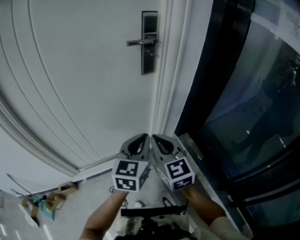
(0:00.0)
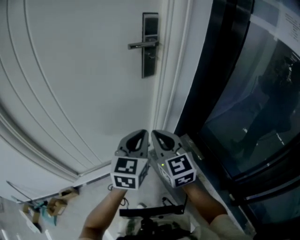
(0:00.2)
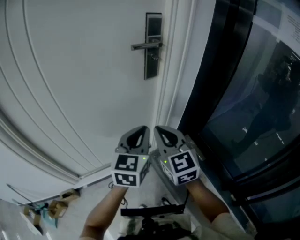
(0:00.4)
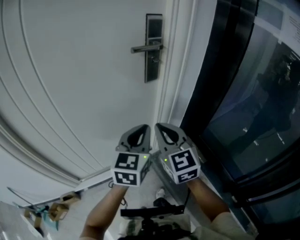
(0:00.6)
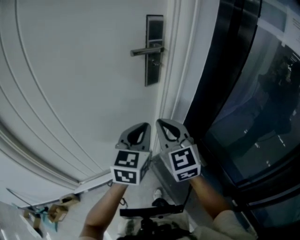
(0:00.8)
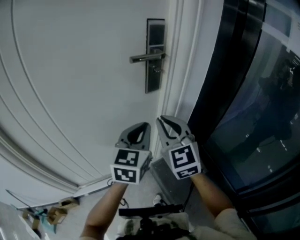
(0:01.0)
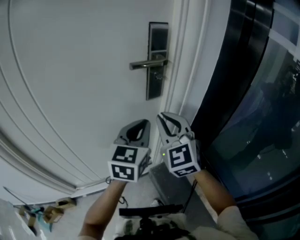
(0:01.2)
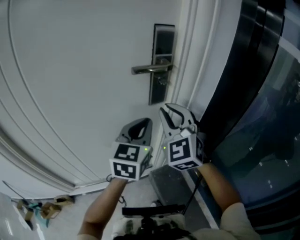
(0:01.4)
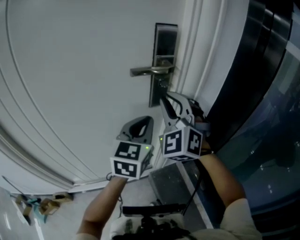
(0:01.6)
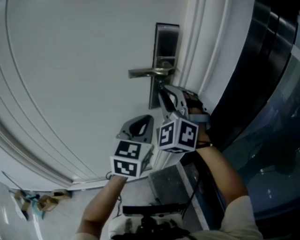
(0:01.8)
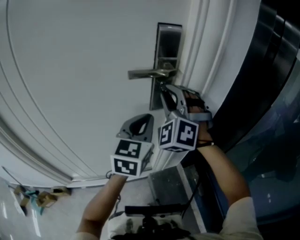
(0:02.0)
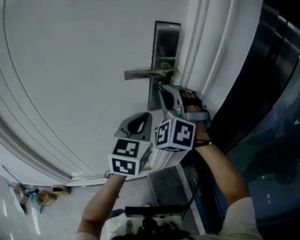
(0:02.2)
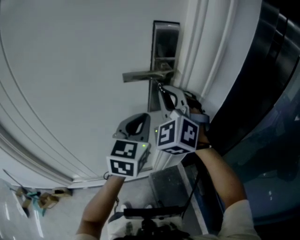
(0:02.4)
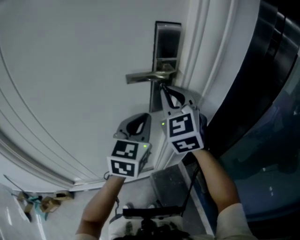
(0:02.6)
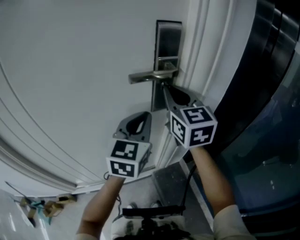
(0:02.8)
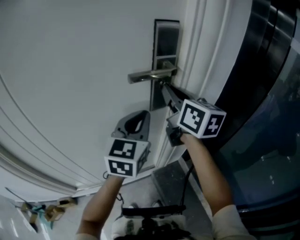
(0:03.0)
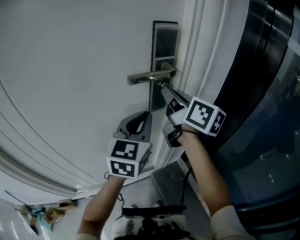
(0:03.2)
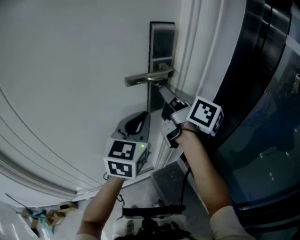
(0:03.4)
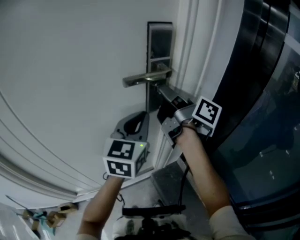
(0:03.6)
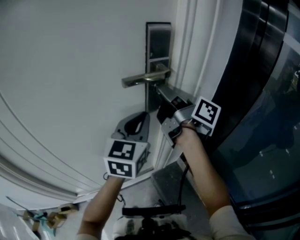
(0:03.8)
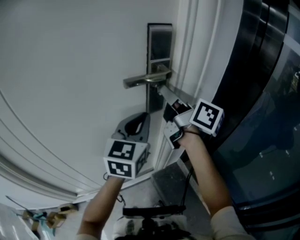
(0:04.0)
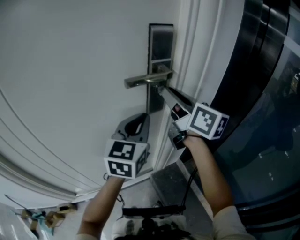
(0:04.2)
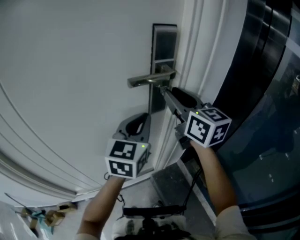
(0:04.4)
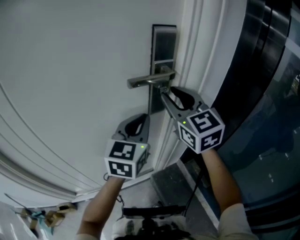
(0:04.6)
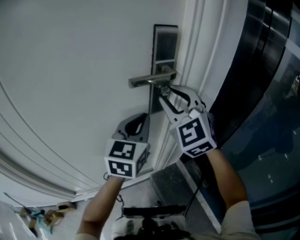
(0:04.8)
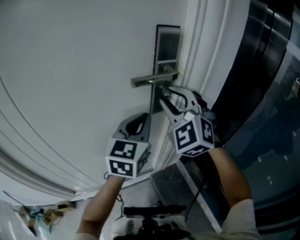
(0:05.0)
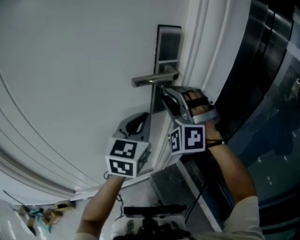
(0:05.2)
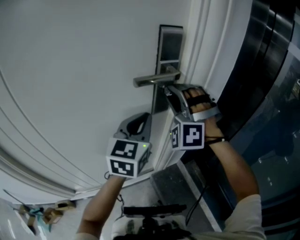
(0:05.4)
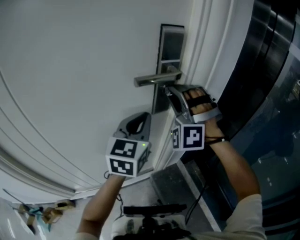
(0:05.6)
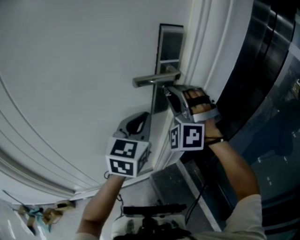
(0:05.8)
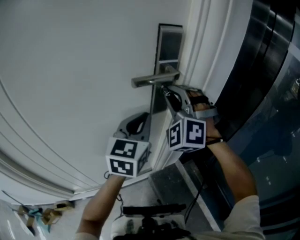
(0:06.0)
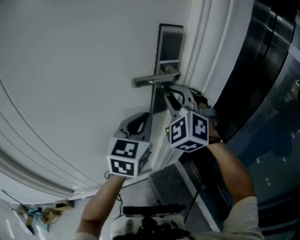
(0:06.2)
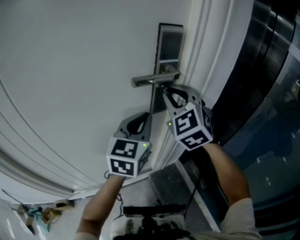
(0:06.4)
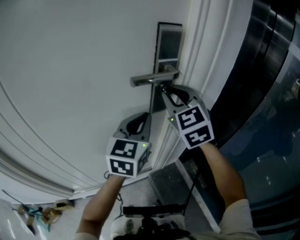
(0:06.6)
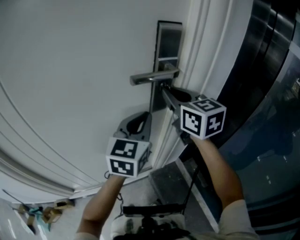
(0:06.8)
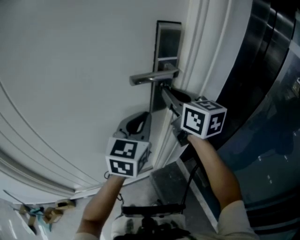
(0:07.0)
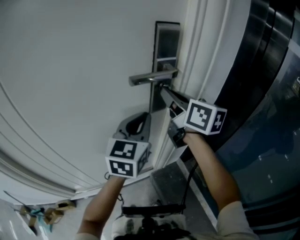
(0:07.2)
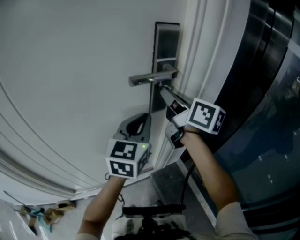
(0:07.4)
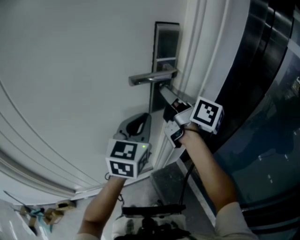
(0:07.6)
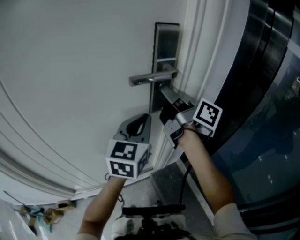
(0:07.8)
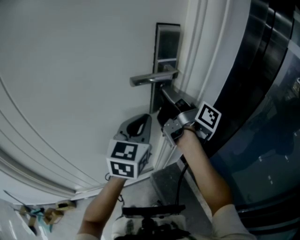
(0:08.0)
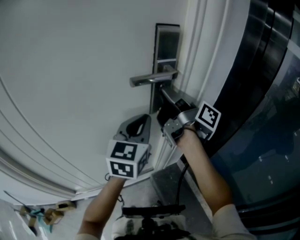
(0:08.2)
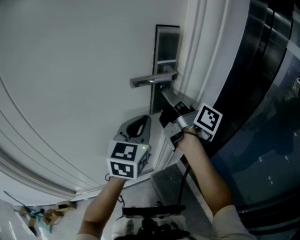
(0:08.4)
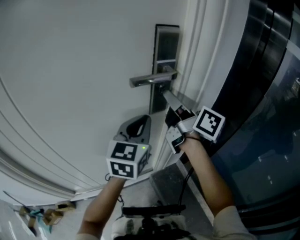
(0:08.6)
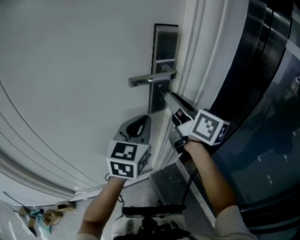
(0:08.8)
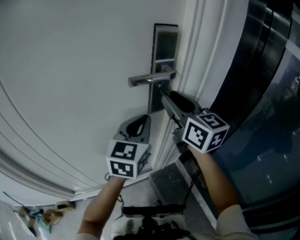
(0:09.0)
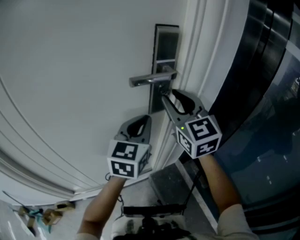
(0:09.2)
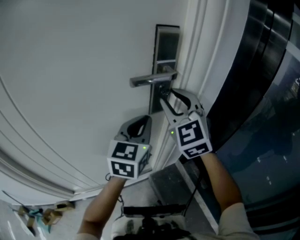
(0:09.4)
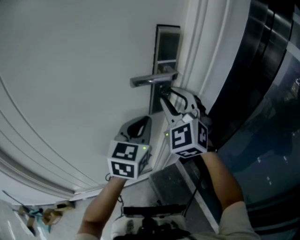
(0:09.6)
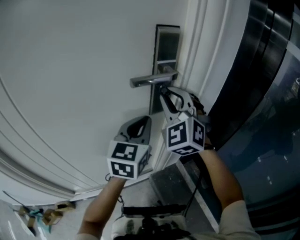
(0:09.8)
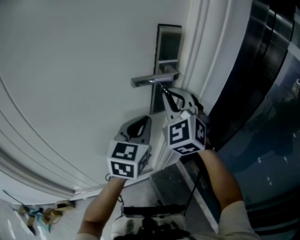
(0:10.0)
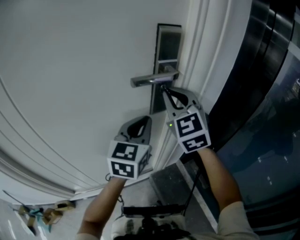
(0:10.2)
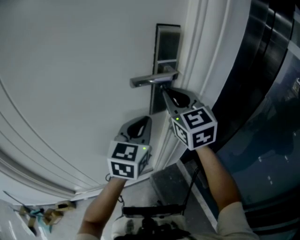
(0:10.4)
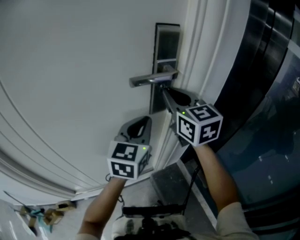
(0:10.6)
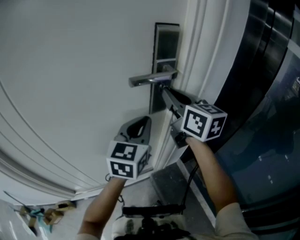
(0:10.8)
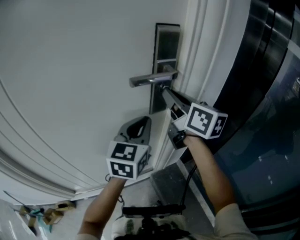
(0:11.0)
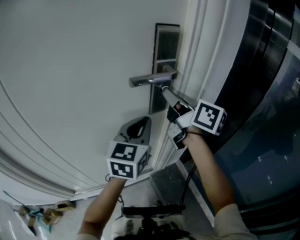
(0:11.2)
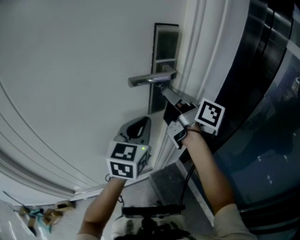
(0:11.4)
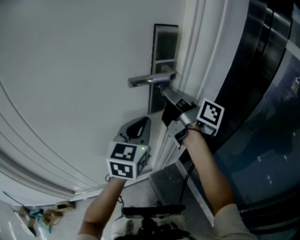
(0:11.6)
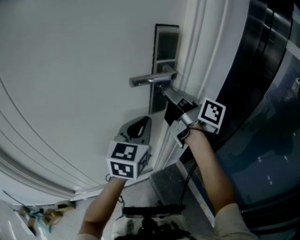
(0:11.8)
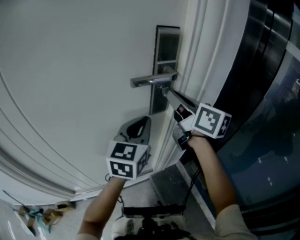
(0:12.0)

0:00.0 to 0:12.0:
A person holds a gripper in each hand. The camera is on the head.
0:00.0 to 0:01.6: The left gripper goes roughly 25 cm forward. The right gripper shifts roughly 30 cm forward and upward, and rolls counterclockwise, seen from behind, by roughly 50 degrees.
0:01.6 to 0:03.0: The right gripper moves forward, roughly 5 cm, and twists about 80 degrees clockwise, seen from behind.
0:03.0 to 0:04.4: The right gripper opens.
0:04.4 to 0:06.0: The right gripper rotates around the line of its fingers by roughly 90 degrees, counterclockwise from behind.
0:06.0 to 0:07.6: The right gripper rotates around the line of its fingers by approximately 130 degrees, clockwise from behind.
0:07.6 to 0:09.0: The right gripper rolls counterclockwise, seen from behind, by approximately 40 degrees.
0:09.0 to 0:10.4: The right gripper swivels some 30 degrees, and closes.
0:10.4 to 0:12.0: The right gripper twists approximately 50 degrees clockwise, seen from behind.

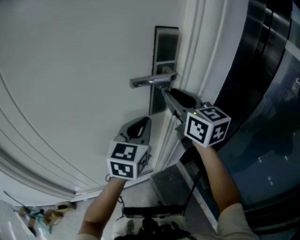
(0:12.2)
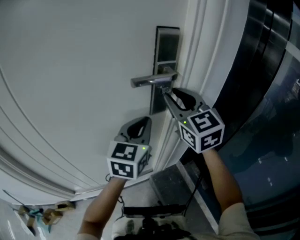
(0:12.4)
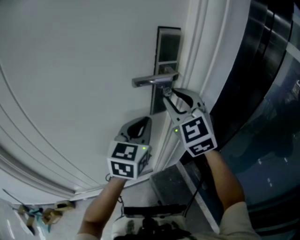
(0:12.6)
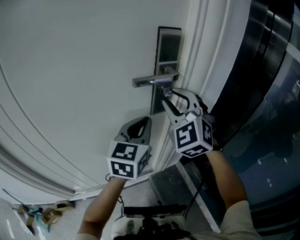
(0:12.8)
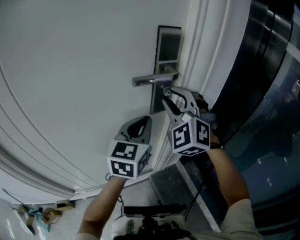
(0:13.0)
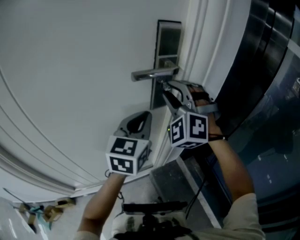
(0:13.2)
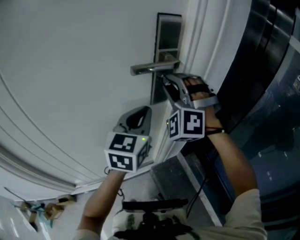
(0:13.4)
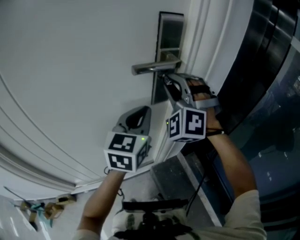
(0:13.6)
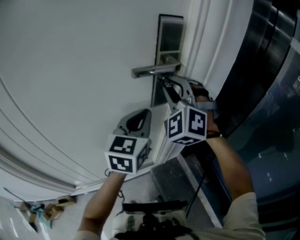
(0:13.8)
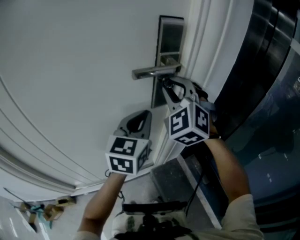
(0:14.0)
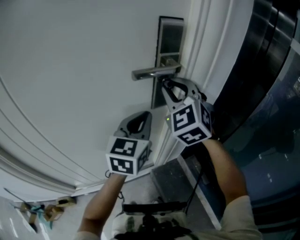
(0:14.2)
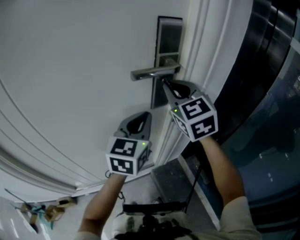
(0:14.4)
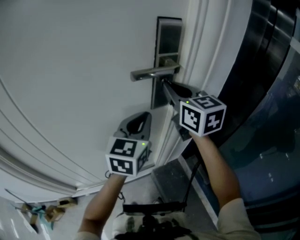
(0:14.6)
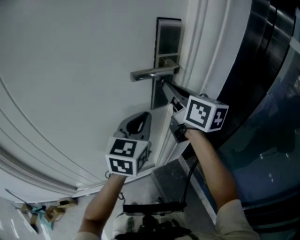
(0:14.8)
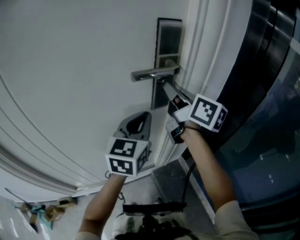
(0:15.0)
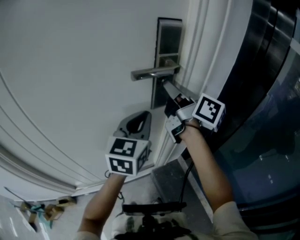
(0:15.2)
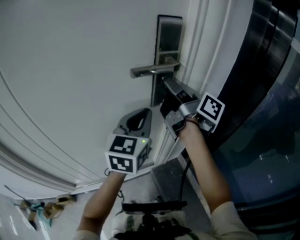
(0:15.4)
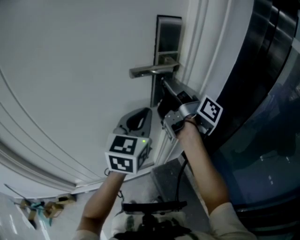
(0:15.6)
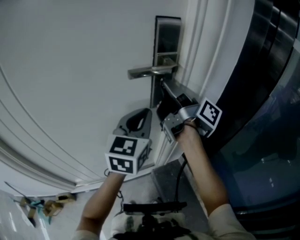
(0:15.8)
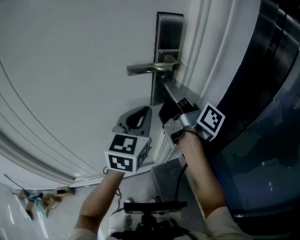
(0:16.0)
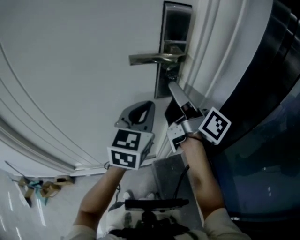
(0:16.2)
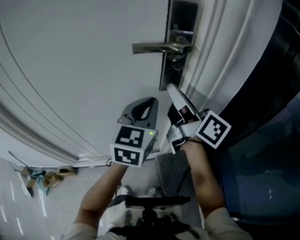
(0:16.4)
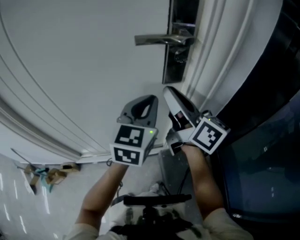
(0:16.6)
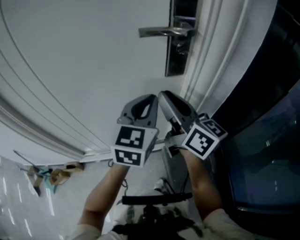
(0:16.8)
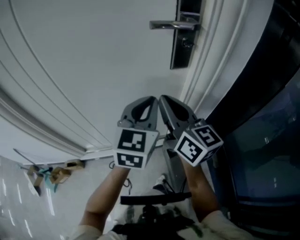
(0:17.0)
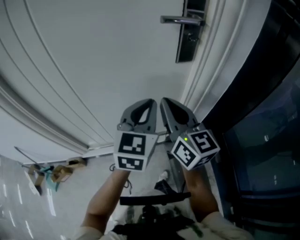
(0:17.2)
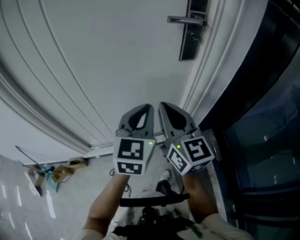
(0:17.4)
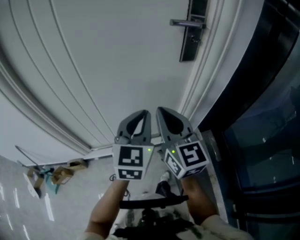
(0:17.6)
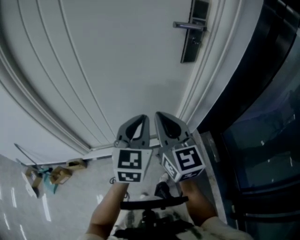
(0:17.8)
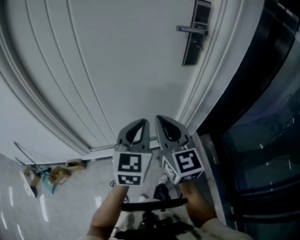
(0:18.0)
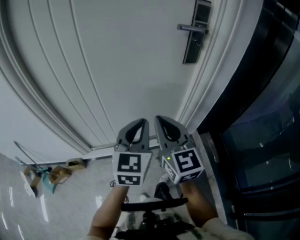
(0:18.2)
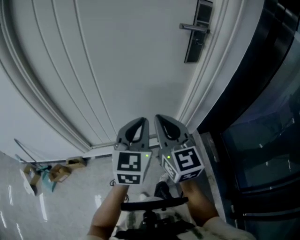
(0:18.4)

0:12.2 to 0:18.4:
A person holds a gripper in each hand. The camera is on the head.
0:12.2 to 0:13.8: The right gripper rolls counterclockwise, seen from behind, by some 70 degrees.
0:13.8 to 0:15.4: The right gripper twists roughly 140 degrees clockwise, seen from behind.
0:15.4 to 0:16.8: The right gripper shifts roughly 15 cm backward, downward and to the left, and changes its angle by some 40 degrees, while the left gripper shifts by roughly 5 cm.
0:16.8 to 0:18.4: The two grippers go some 25 cm backward and to the left. The right gripper changes its angle by roughly 40 degrees, and closes its fingers.

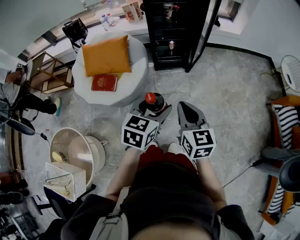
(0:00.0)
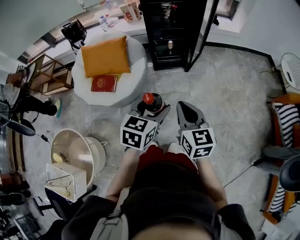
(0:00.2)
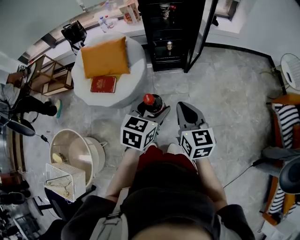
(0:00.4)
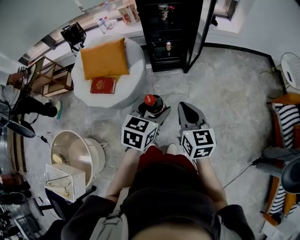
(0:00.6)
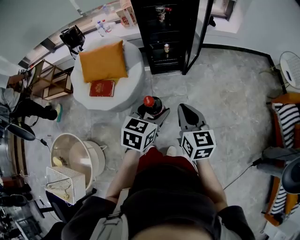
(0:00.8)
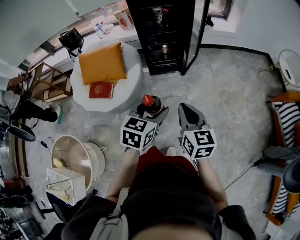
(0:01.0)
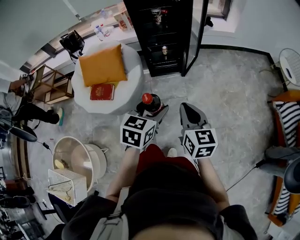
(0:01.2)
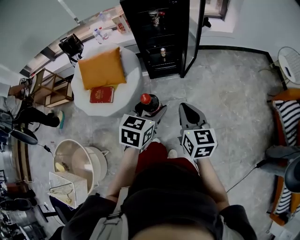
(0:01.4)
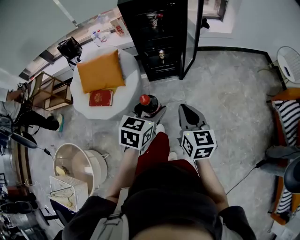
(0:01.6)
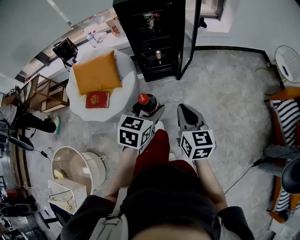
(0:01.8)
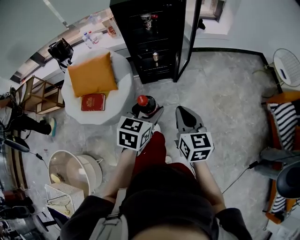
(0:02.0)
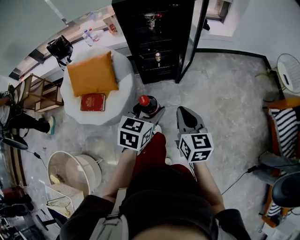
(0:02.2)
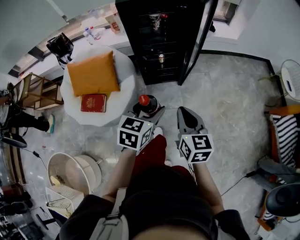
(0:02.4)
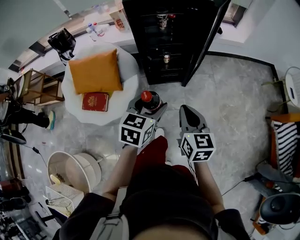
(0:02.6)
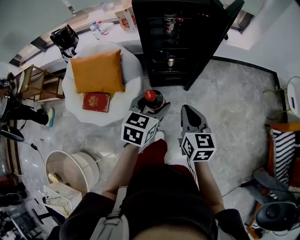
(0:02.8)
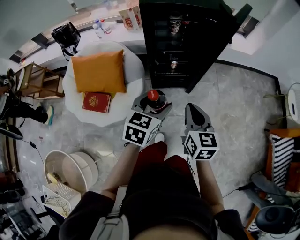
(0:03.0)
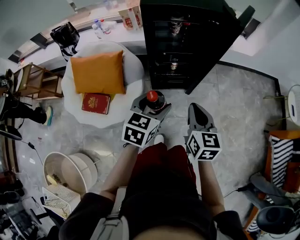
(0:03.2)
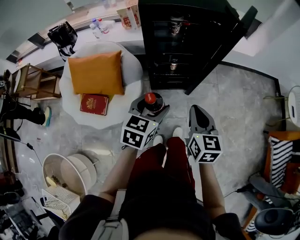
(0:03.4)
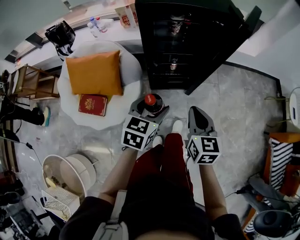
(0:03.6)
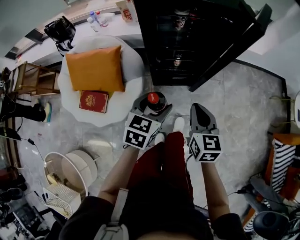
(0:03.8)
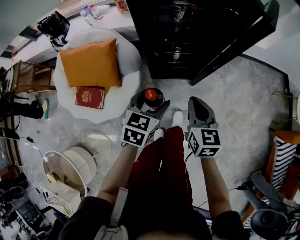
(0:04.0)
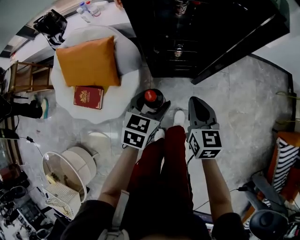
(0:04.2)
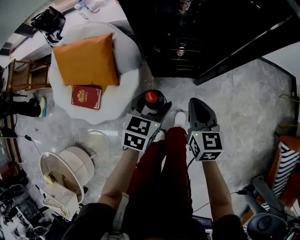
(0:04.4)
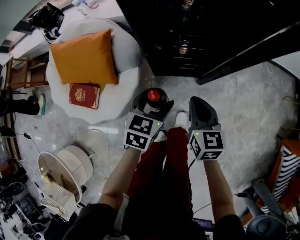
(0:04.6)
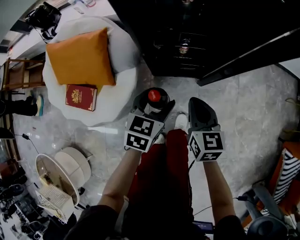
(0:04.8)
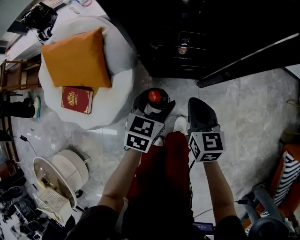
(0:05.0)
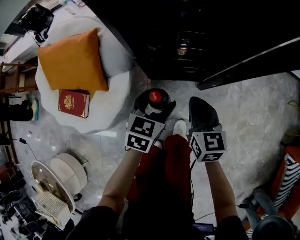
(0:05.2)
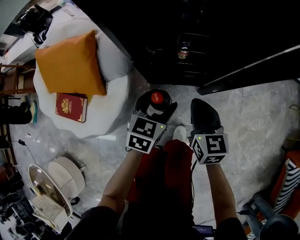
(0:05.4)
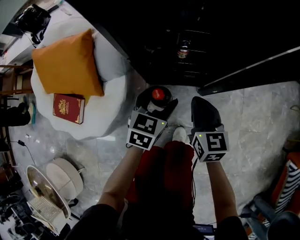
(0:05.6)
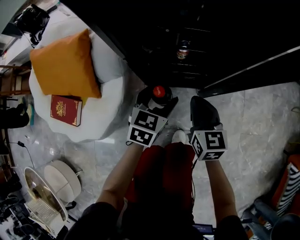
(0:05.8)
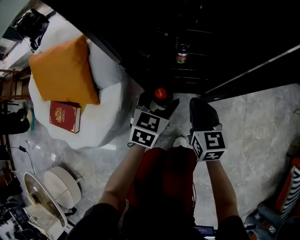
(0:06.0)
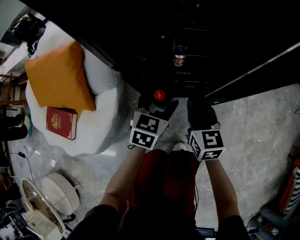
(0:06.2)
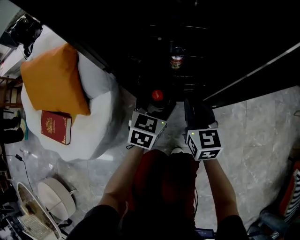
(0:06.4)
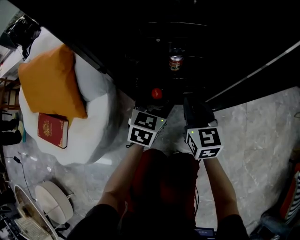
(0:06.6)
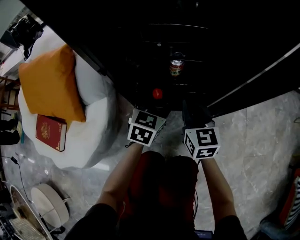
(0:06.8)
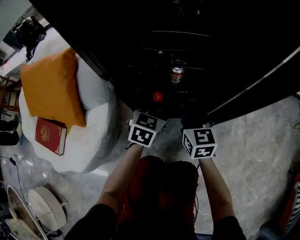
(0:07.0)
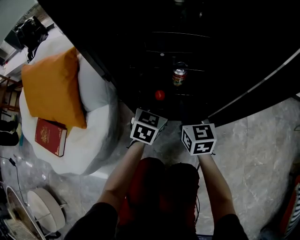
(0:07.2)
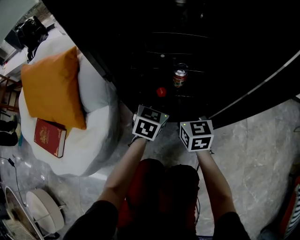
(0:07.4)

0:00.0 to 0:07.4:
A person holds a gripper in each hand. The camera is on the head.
0:00.0 to 0:01.4: Both grippers move to the right, about 10 cm.
0:01.4 to 0:03.0: Both grippers travel together forward, about 30 cm.
0:03.0 to 0:04.4: The grippers both shift downward and forward by roughly 20 cm.
0:04.4 to 0:06.0: The grippers both shift downward and forward by some 30 cm.
0:06.0 to 0:07.4: The grippers both shift forward and downward by approximately 15 cm.
